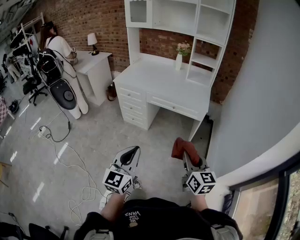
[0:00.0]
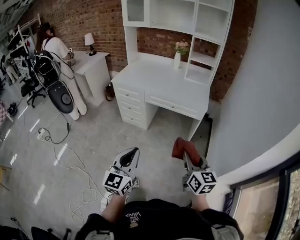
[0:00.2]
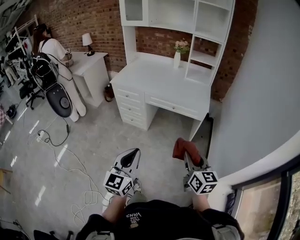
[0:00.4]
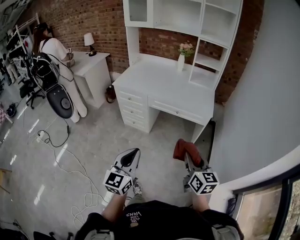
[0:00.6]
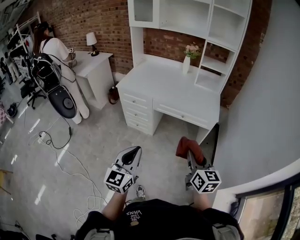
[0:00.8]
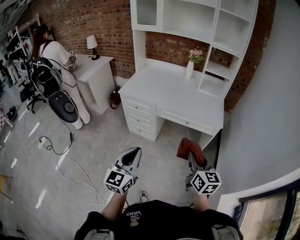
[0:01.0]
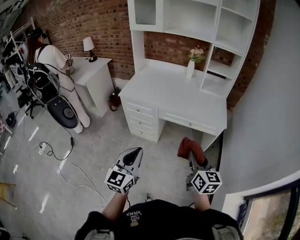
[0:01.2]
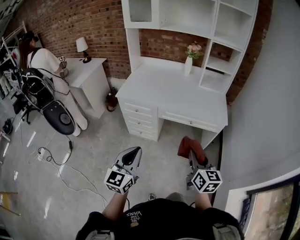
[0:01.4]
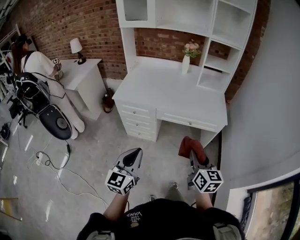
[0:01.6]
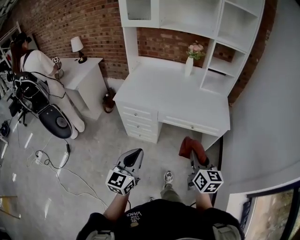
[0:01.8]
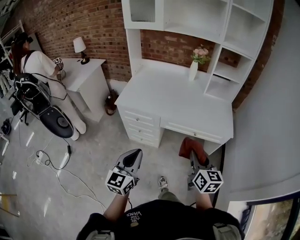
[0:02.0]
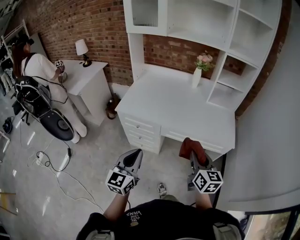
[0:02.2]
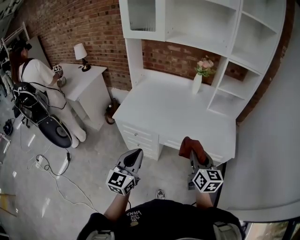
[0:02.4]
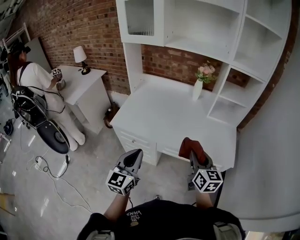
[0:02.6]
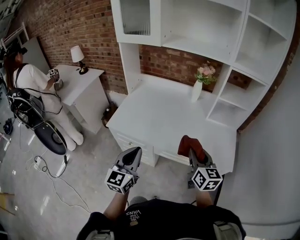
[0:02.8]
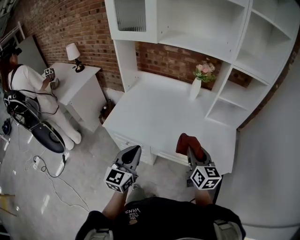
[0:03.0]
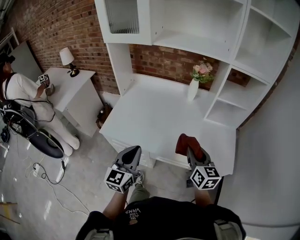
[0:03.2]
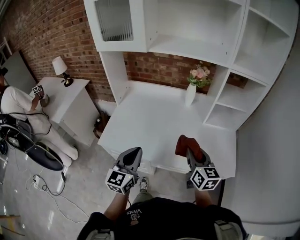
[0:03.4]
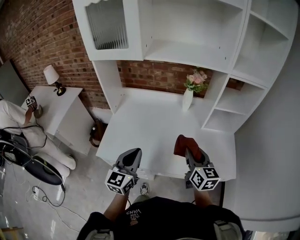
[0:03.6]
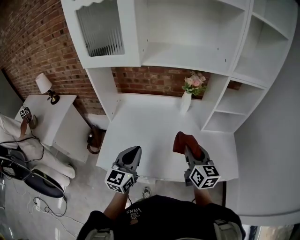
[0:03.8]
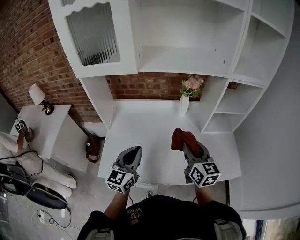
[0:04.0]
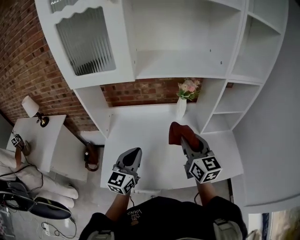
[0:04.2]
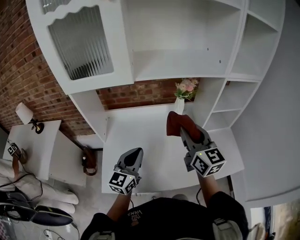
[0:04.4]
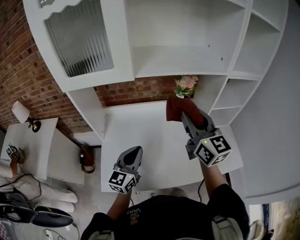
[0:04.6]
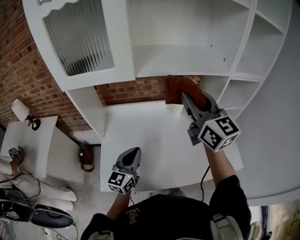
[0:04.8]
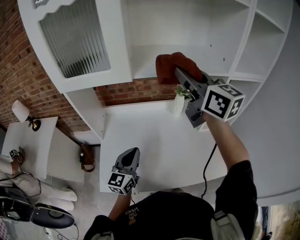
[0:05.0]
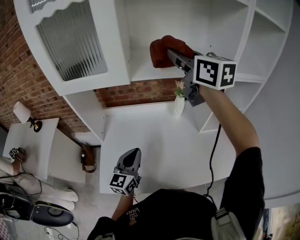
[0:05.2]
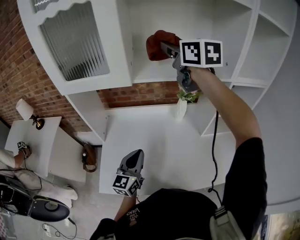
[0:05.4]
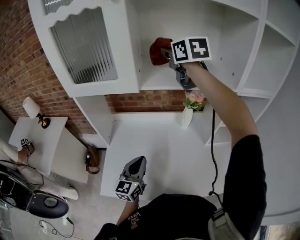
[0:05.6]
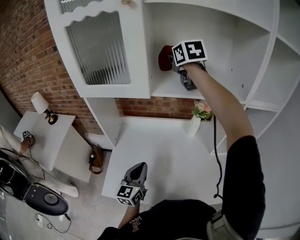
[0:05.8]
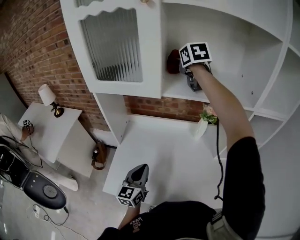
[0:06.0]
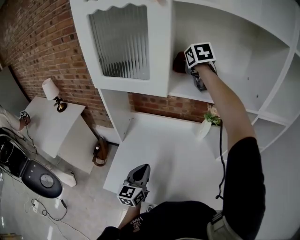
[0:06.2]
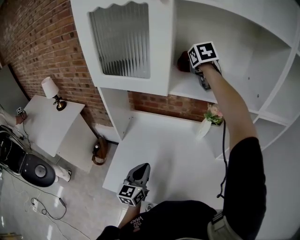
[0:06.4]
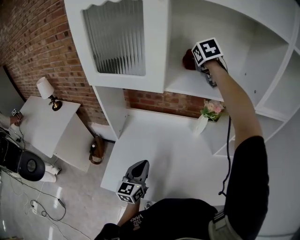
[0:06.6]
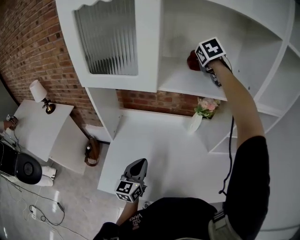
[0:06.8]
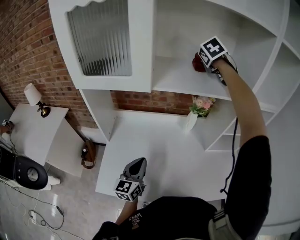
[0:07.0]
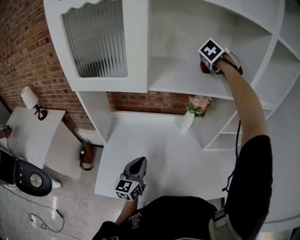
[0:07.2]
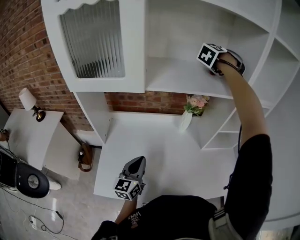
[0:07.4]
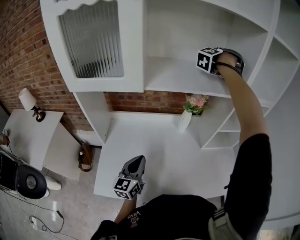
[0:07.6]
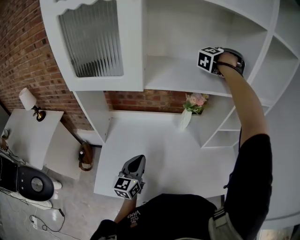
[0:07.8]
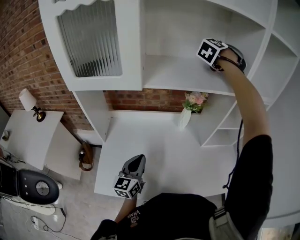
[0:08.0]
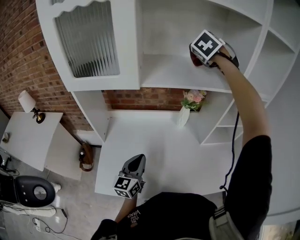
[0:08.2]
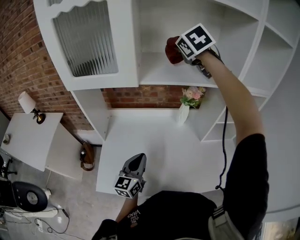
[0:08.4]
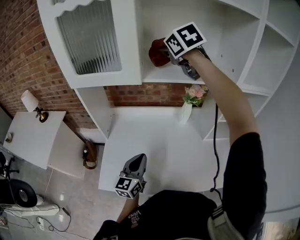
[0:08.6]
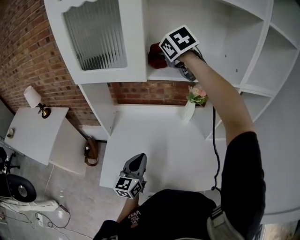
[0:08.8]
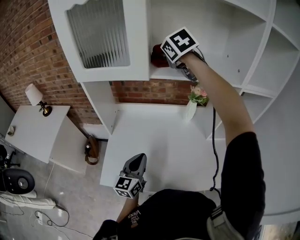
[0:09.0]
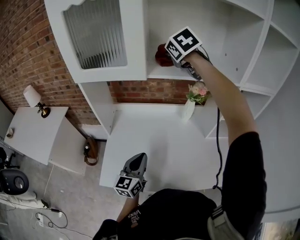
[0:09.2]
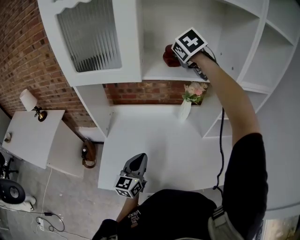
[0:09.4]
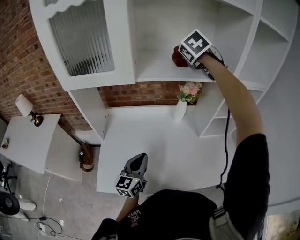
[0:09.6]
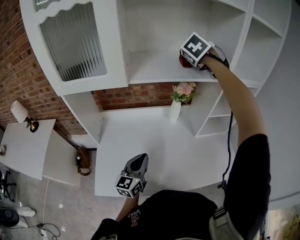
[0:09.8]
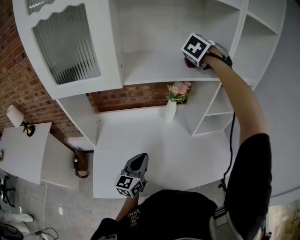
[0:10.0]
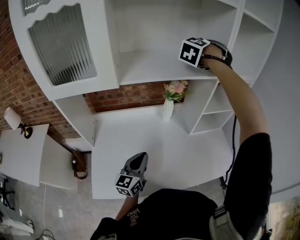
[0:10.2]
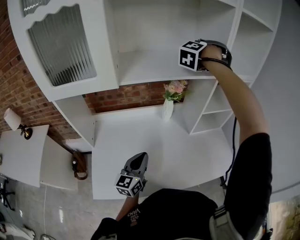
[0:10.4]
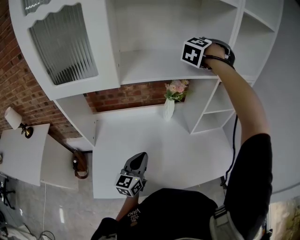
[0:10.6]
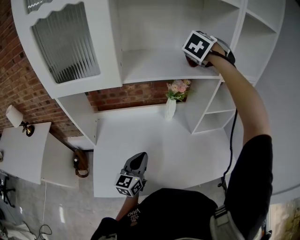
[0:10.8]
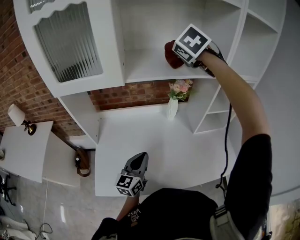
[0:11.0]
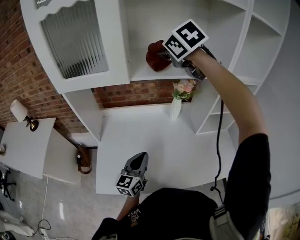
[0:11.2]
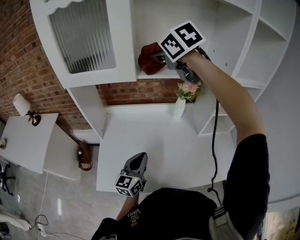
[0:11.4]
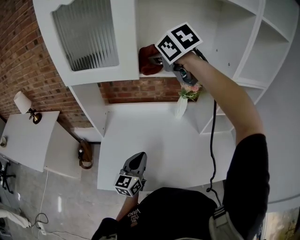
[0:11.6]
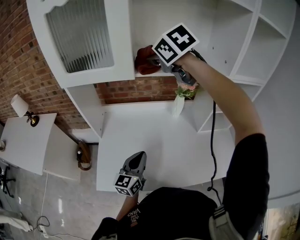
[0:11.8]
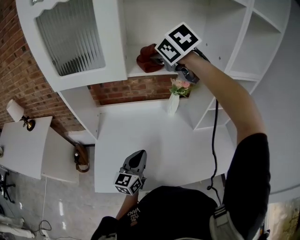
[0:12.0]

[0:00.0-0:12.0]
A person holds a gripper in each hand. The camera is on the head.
0:00.0 to 0:01.6: Both grippers travel together forward and to the left, some 30 cm.
0:01.6 to 0:03.0: Both grippers travel together forward, roughly 35 cm.
0:03.0 to 0:04.4: The right gripper moves forward, upward and to the left, roughly 30 cm, and rotates some 20 degrees, while the left gripper travels forward by approximately 30 cm, and rotates approximately 30 degrees.
0:04.4 to 0:06.0: The right gripper shifts approximately 40 cm forward and upward, and swivels roughly 30 degrees. The left gripper shifts by approximately 5 cm, and swivels roughly 20 degrees.
0:06.0 to 0:07.6: The right gripper ends up roughly 30 cm from where it was, and swivels about 90 degrees.
0:07.6 to 0:09.0: The left gripper changes place by roughly 5 cm; the right gripper moves about 30 cm, and turns by approximately 70 degrees.
0:09.0 to 0:10.4: The left gripper moves roughly 10 cm. The right gripper shifts by about 30 cm, and rotates roughly 70 degrees.
0:10.4 to 0:12.0: The right gripper shifts by some 25 cm, and turns by roughly 70 degrees.

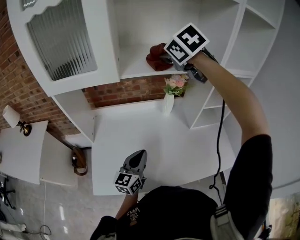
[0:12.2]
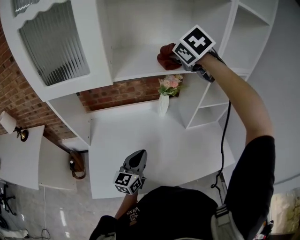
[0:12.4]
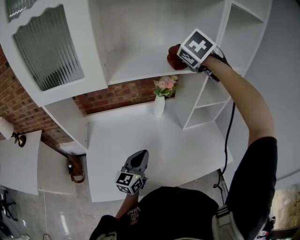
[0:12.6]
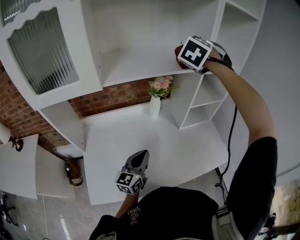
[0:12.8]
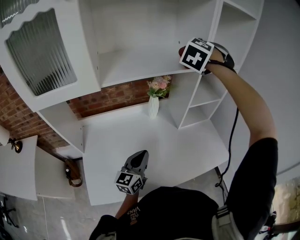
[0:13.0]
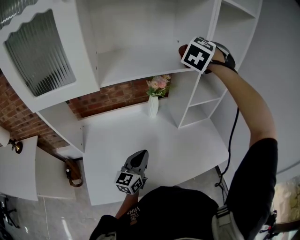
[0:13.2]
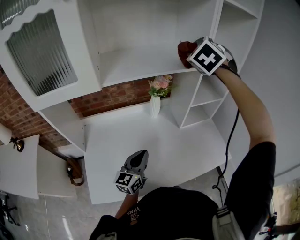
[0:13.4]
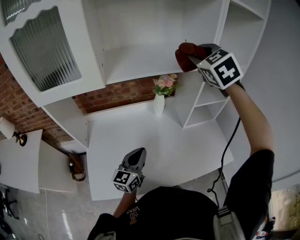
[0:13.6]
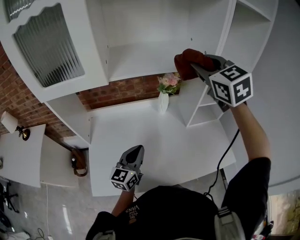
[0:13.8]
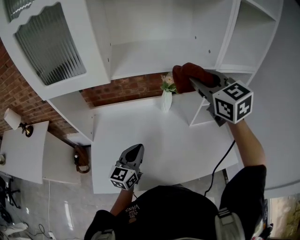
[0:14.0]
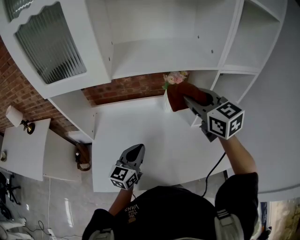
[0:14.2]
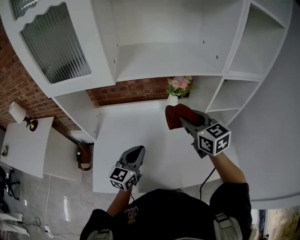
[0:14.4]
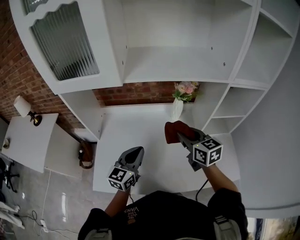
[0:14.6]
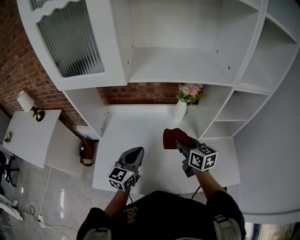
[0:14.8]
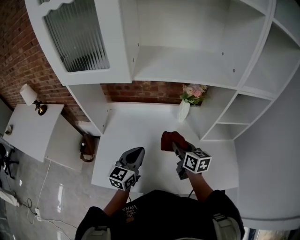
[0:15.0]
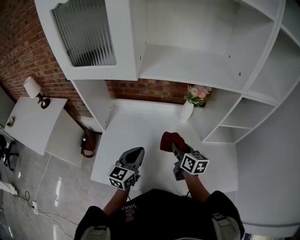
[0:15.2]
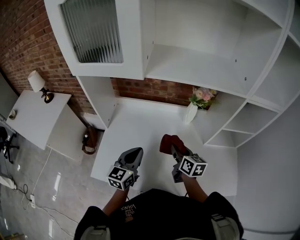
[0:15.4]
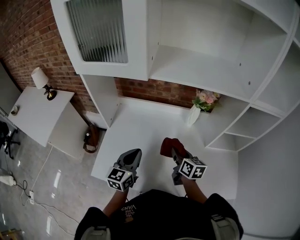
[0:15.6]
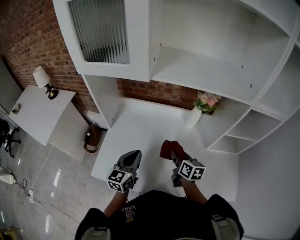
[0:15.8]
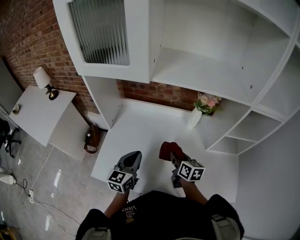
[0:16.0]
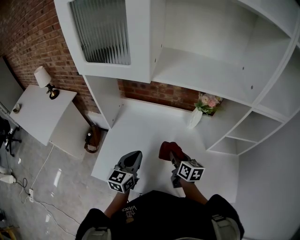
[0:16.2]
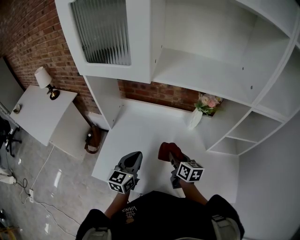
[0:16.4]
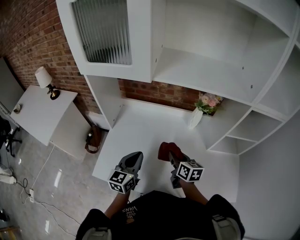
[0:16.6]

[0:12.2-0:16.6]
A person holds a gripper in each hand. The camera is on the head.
0:12.2 to 0:13.6: The right gripper moves approximately 15 cm, and rotates approximately 30 degrees.
0:13.6 to 0:15.2: The right gripper heads downward, covering about 35 cm, and twists roughly 60 degrees clockwise, seen from behind; the left gripper moves to the left, about 5 cm.
0:15.2 to 0:16.6: The right gripper moves approximately 5 cm.

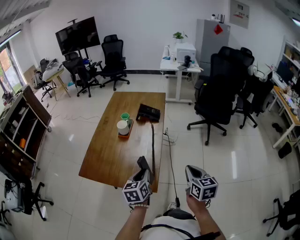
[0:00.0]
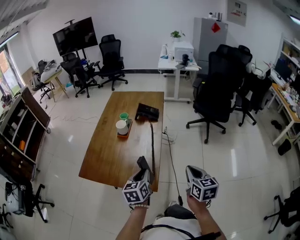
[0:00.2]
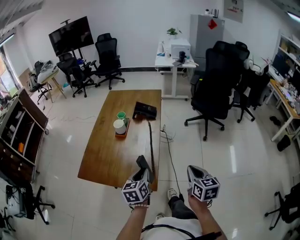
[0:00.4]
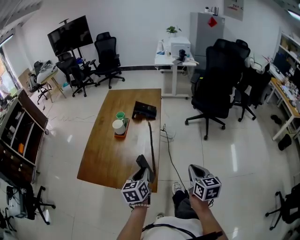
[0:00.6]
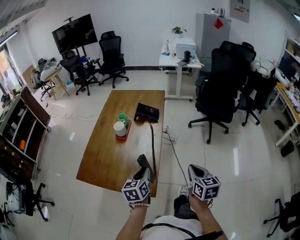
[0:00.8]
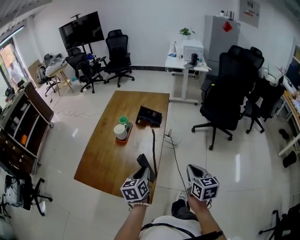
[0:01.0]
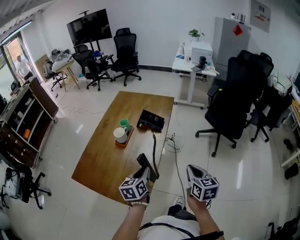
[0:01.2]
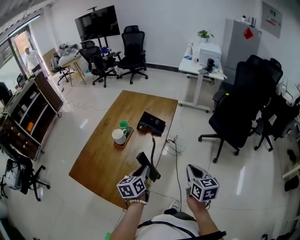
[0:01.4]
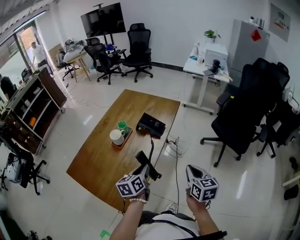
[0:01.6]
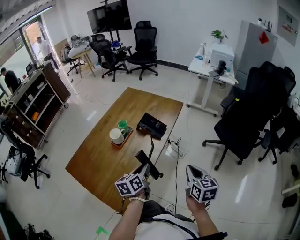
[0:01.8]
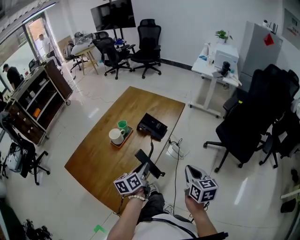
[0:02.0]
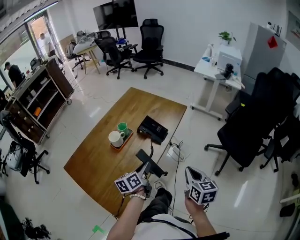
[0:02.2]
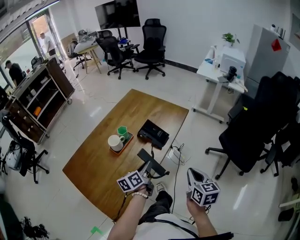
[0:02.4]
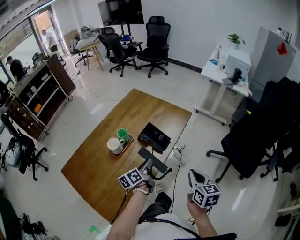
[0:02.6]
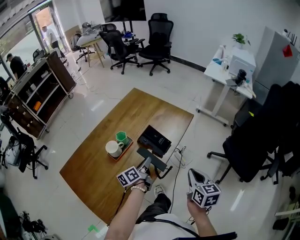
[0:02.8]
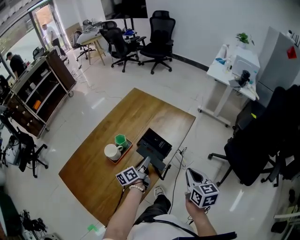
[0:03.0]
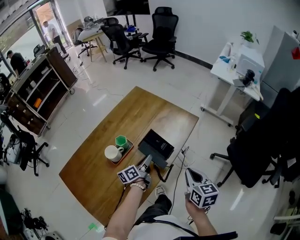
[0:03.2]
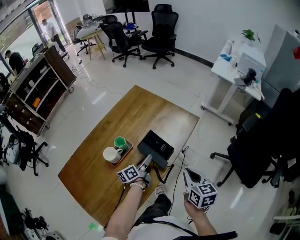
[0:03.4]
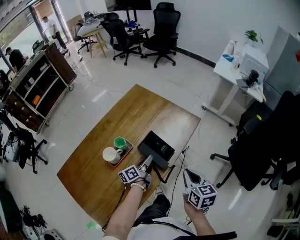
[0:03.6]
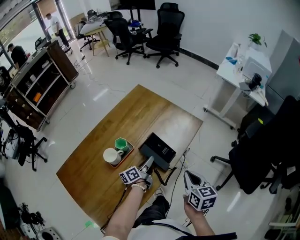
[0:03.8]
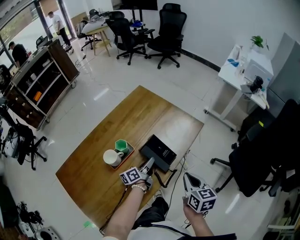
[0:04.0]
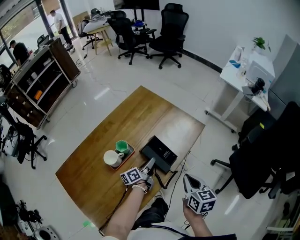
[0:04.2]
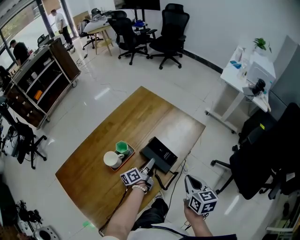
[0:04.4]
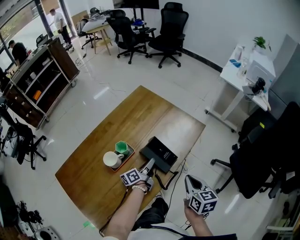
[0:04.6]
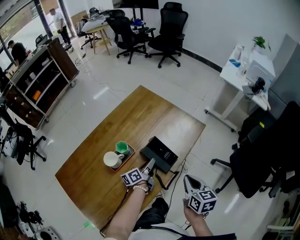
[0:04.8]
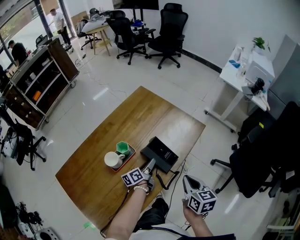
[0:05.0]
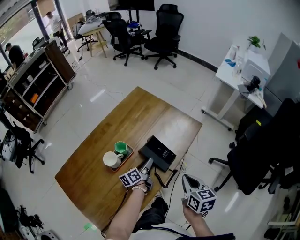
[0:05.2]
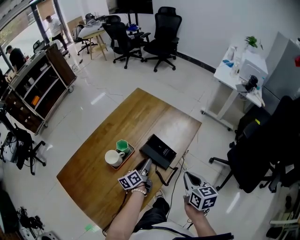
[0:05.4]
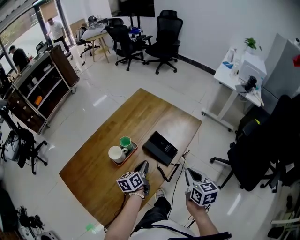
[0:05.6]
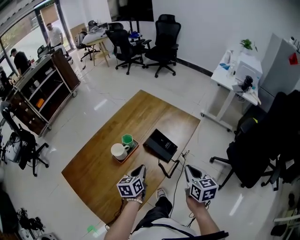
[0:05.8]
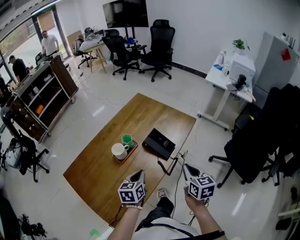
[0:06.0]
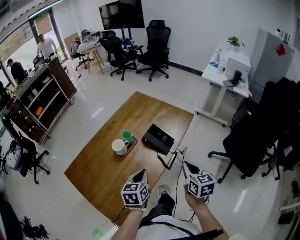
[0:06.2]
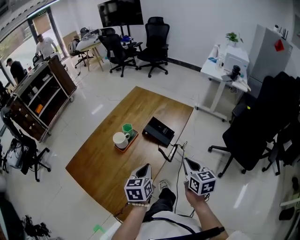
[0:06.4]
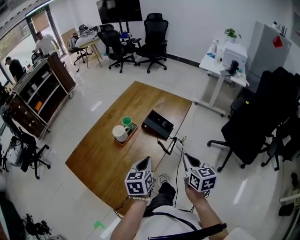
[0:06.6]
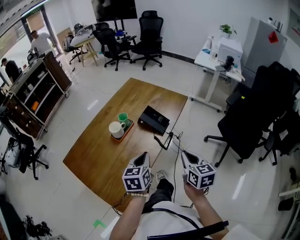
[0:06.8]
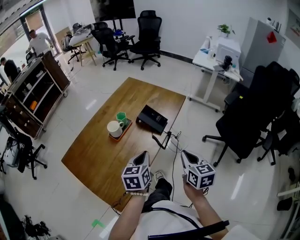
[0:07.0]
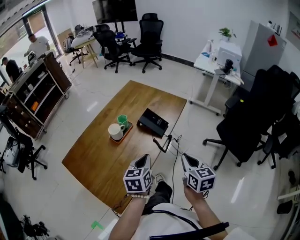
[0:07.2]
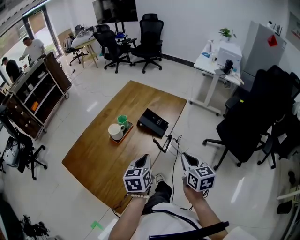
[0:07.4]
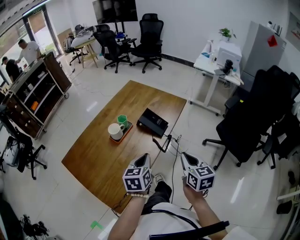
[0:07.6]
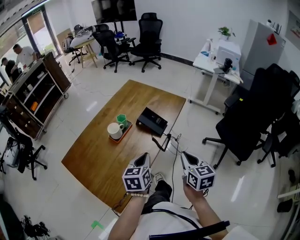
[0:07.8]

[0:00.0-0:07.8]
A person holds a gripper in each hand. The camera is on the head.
0:00.0 to 0:01.6: The left gripper moves forward and to the right, roughly 20 cm, and turns by about 20 degrees. Meanwhile the right gripper is displaced forward by about 25 cm.
0:01.6 to 0:03.2: Both grippers move forward, approximately 25 cm. The left gripper changes its angle by some 30 degrees.
0:03.2 to 0:04.6: The left gripper ends up some 5 cm from where it was.
0:04.6 to 0:06.2: The right gripper shifts approximately 10 cm backward and upward, while the left gripper moves backward and upward, some 25 cm, rolls clockwise, seen from behind, by about 50 degrees, and opens, then closes once more.
0:06.2 to 0:07.8: The left gripper changes place by some 5 cm, while the right gripper shifts approximately 5 cm backward.
